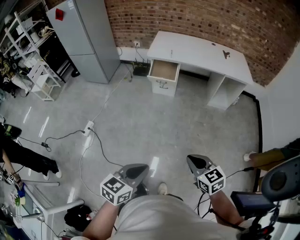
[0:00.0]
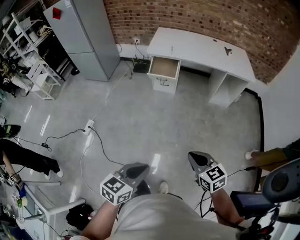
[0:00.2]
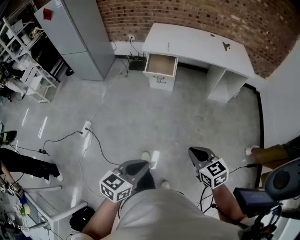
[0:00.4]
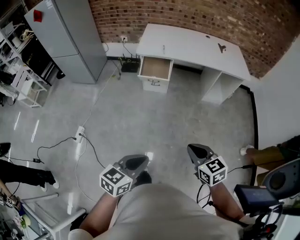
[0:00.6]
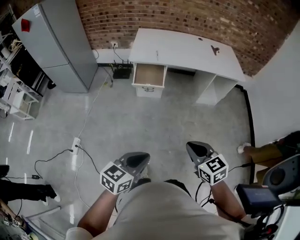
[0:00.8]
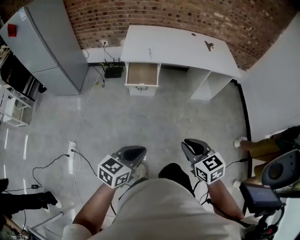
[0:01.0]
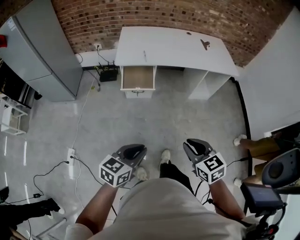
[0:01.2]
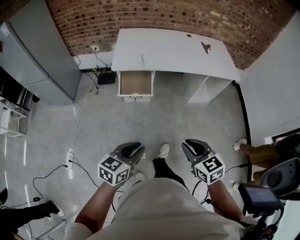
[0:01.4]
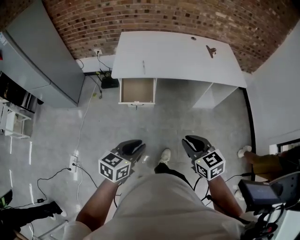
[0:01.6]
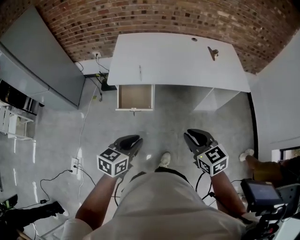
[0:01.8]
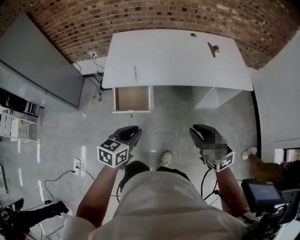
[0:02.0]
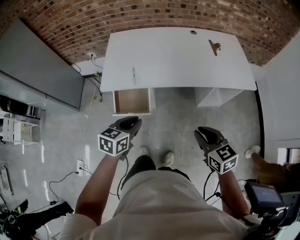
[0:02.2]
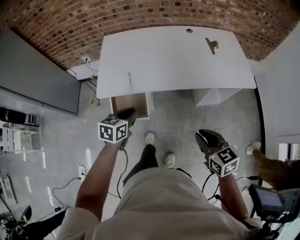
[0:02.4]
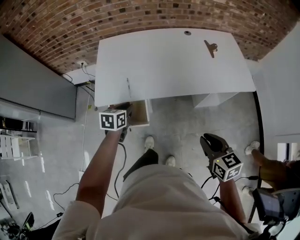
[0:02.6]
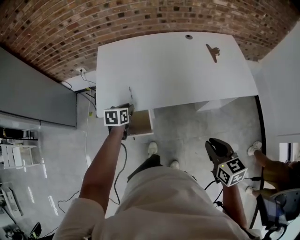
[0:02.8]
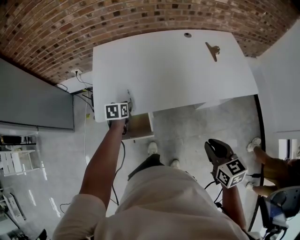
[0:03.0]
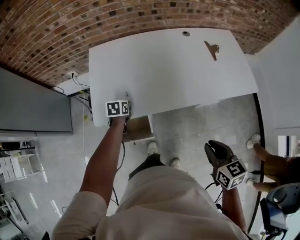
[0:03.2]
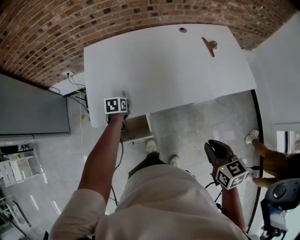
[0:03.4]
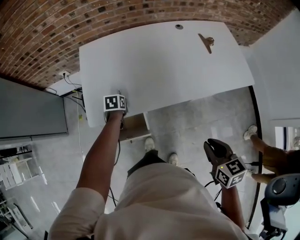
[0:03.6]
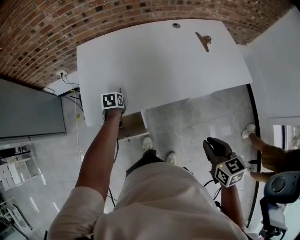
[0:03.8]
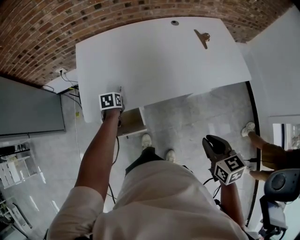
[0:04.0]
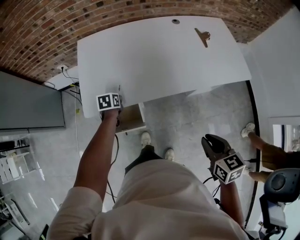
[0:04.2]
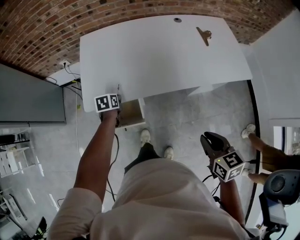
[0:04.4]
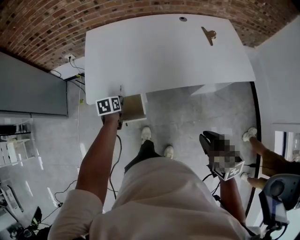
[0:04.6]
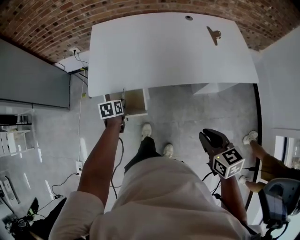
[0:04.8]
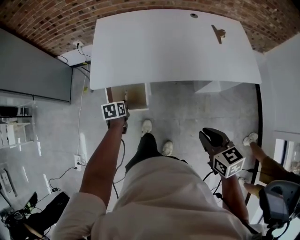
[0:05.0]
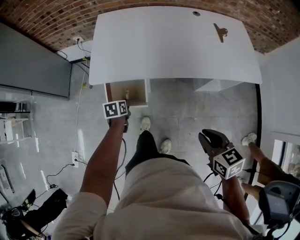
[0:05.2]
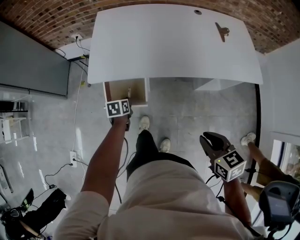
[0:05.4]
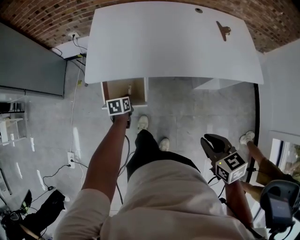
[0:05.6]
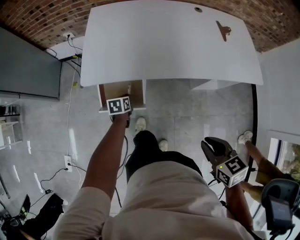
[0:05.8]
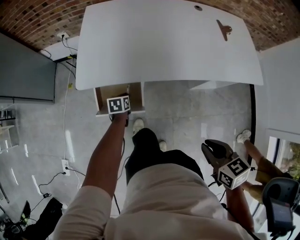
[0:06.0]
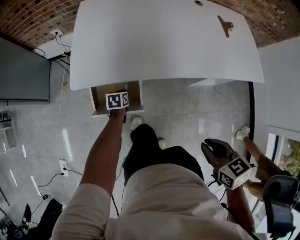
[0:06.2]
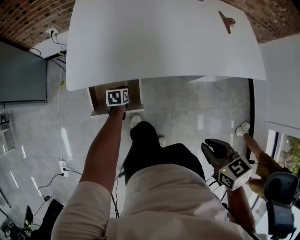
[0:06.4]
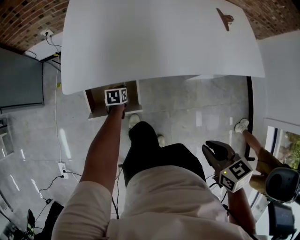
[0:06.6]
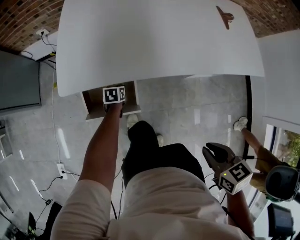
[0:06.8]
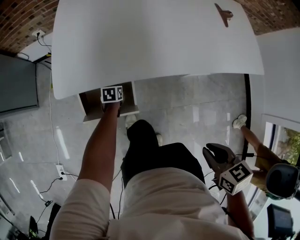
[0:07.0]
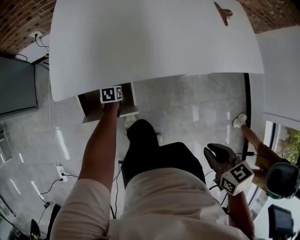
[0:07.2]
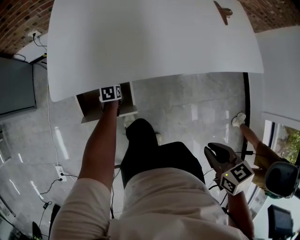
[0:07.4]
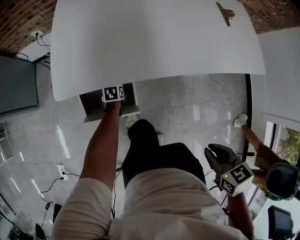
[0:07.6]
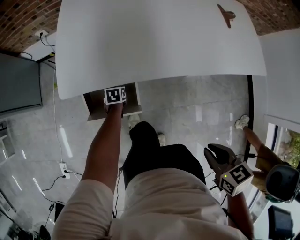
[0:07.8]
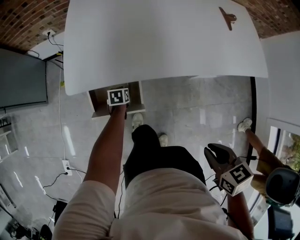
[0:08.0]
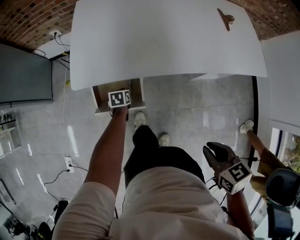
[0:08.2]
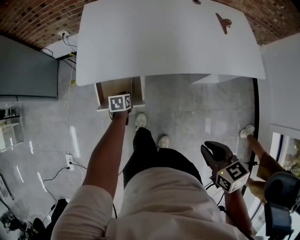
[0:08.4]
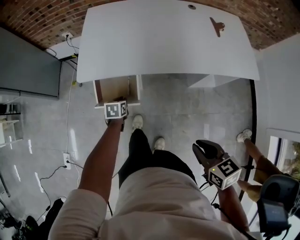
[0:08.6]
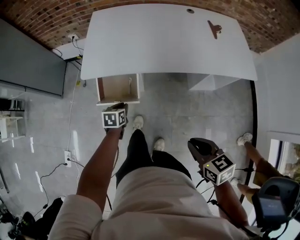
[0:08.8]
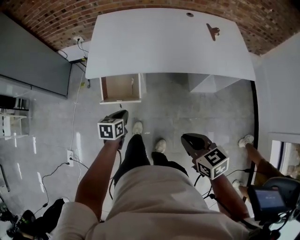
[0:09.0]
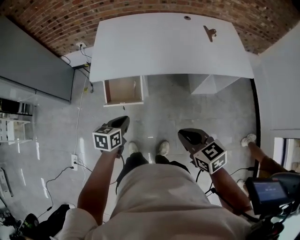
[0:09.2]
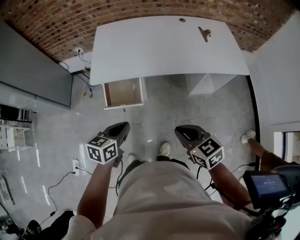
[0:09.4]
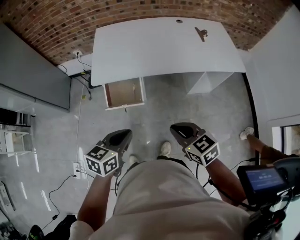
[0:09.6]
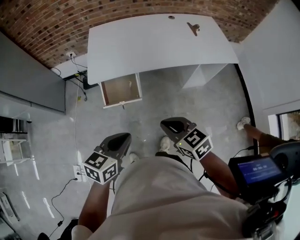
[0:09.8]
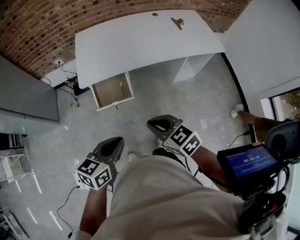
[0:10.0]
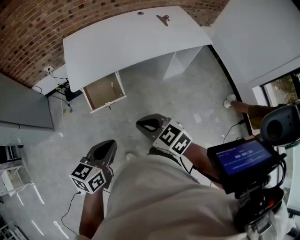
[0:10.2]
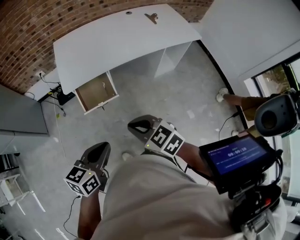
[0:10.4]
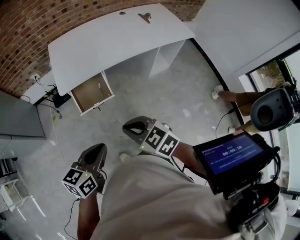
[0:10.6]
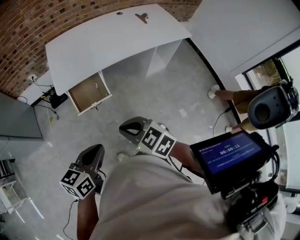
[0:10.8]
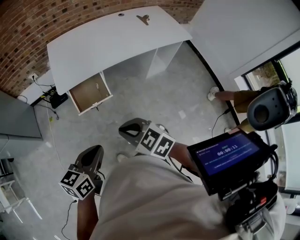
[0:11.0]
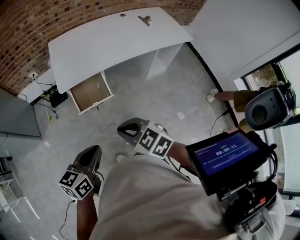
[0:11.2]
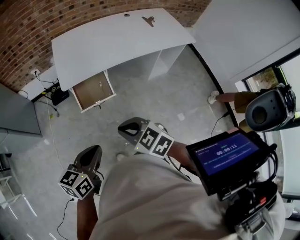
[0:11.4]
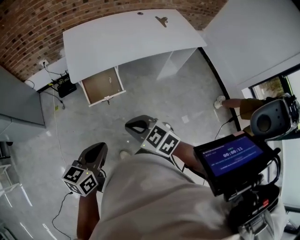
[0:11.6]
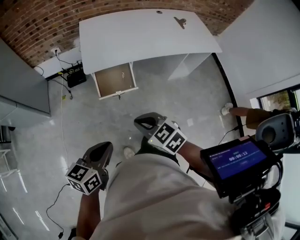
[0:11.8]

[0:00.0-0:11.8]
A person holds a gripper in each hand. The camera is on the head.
0:00.0 to 0:01.4: Both grippers travel together forward, some 40 cm.
0:01.4 to 0:03.0: The pair of grippers is taken forward, some 50 cm. The left gripper changes its angle by roughly 30 degrees. The right gripper turns by about 20 degrees.
0:04.4 to 0:06.0: The left gripper shifts approximately 20 cm downward and backward; the right gripper is displaced downward by about 5 cm.
0:06.0 to 0:07.4: The right gripper goes approximately 5 cm downward. Meanwhile the left gripper shifts approximately 15 cm downward and forward.
0:07.4 to 0:08.8: The right gripper travels backward and upward by some 10 cm. The left gripper heads upward and backward, covering about 30 cm.
0:08.8 to 0:10.4: The right gripper goes some 25 cm to the left. The left gripper travels upward and backward by about 40 cm, and swivels some 40 degrees.
0:10.4 to 0:11.8: Both grippers move to the left, about 10 cm.

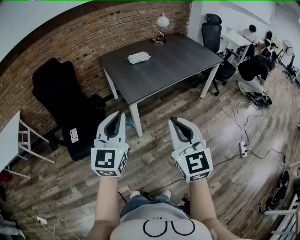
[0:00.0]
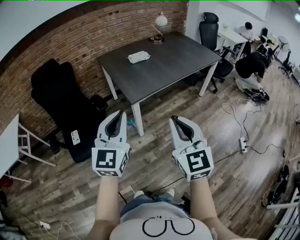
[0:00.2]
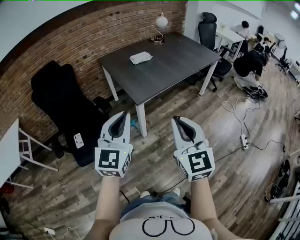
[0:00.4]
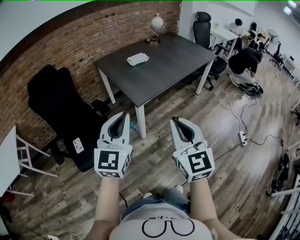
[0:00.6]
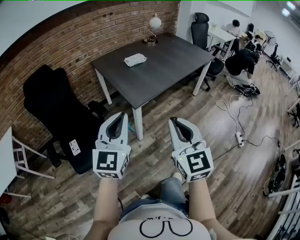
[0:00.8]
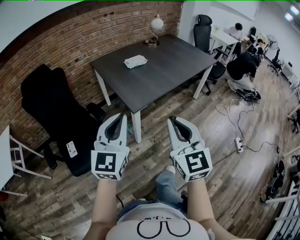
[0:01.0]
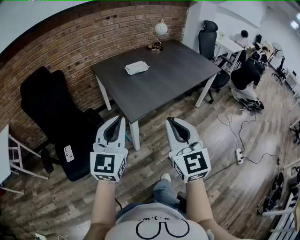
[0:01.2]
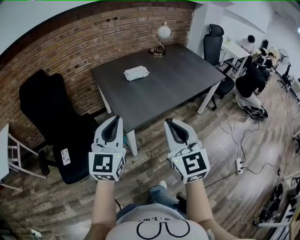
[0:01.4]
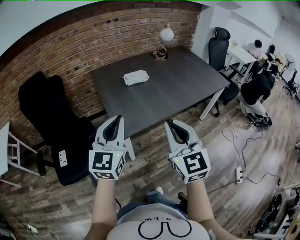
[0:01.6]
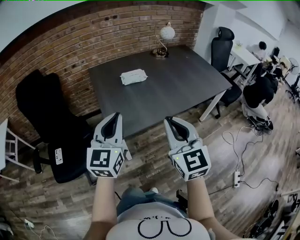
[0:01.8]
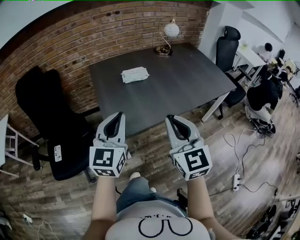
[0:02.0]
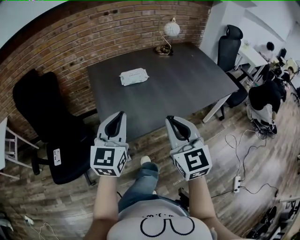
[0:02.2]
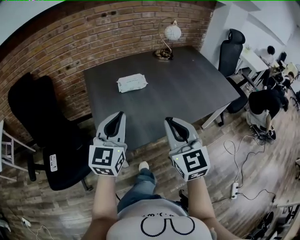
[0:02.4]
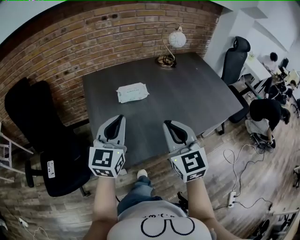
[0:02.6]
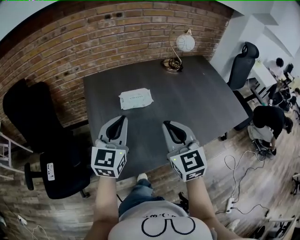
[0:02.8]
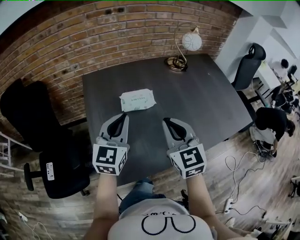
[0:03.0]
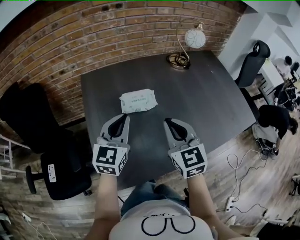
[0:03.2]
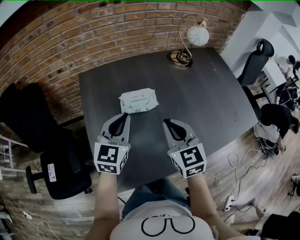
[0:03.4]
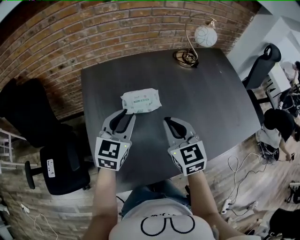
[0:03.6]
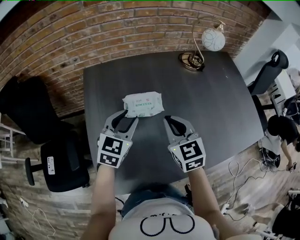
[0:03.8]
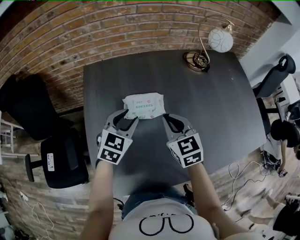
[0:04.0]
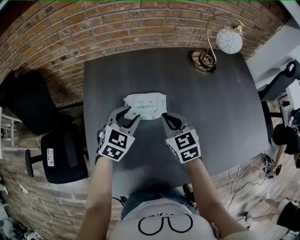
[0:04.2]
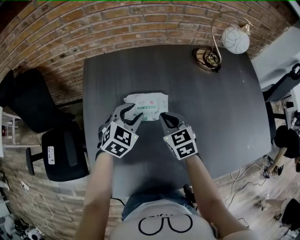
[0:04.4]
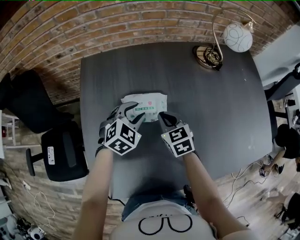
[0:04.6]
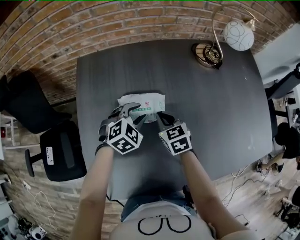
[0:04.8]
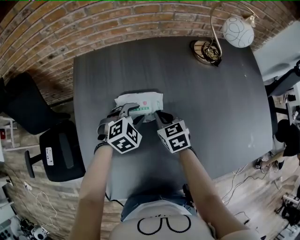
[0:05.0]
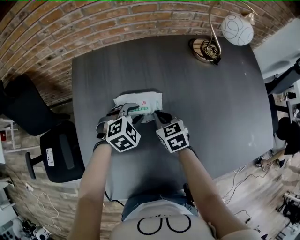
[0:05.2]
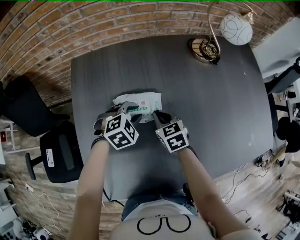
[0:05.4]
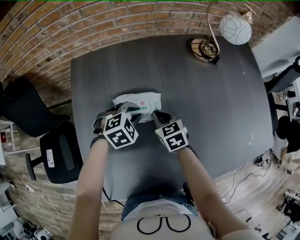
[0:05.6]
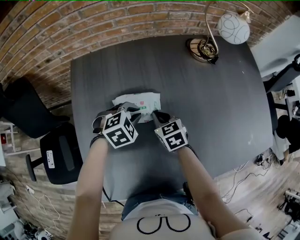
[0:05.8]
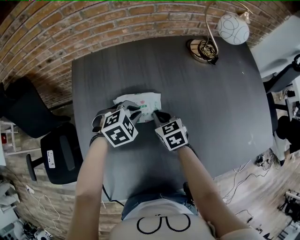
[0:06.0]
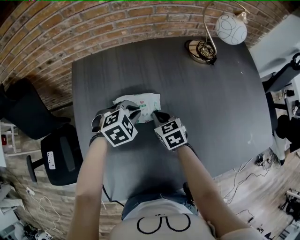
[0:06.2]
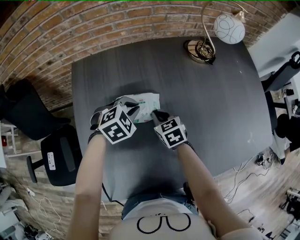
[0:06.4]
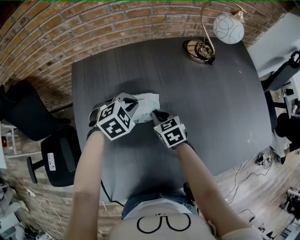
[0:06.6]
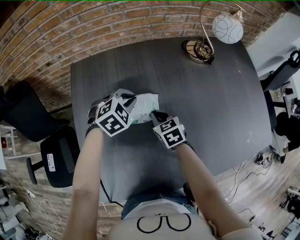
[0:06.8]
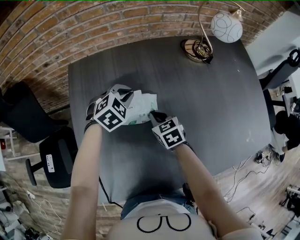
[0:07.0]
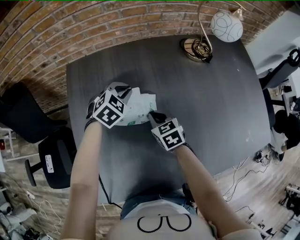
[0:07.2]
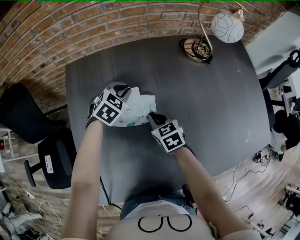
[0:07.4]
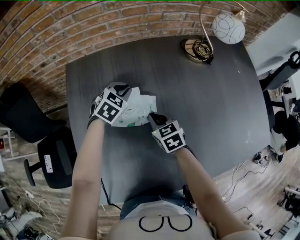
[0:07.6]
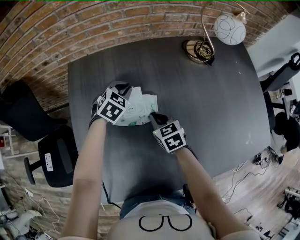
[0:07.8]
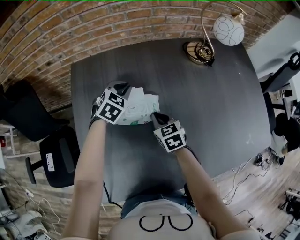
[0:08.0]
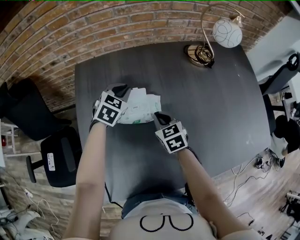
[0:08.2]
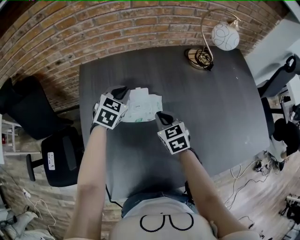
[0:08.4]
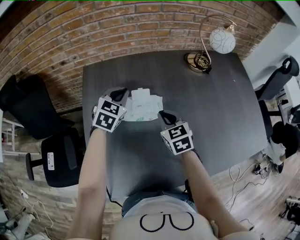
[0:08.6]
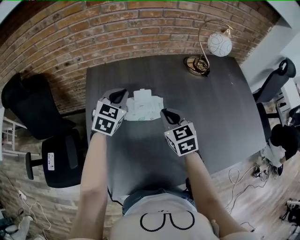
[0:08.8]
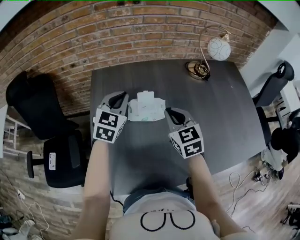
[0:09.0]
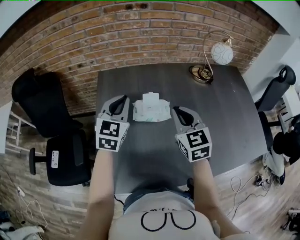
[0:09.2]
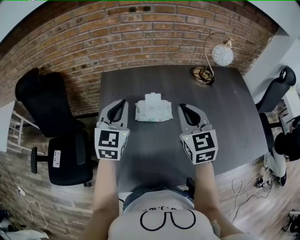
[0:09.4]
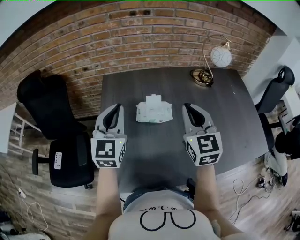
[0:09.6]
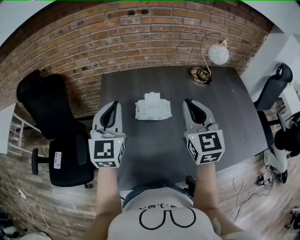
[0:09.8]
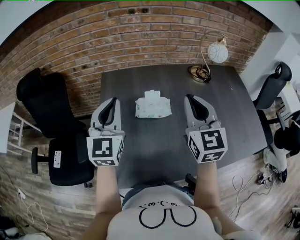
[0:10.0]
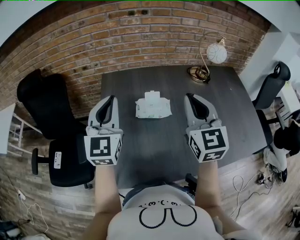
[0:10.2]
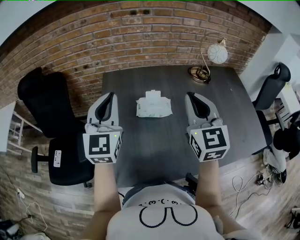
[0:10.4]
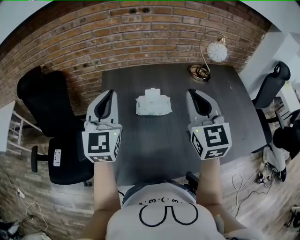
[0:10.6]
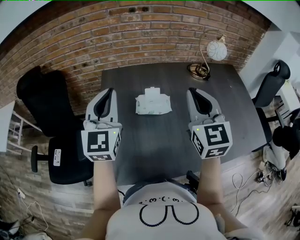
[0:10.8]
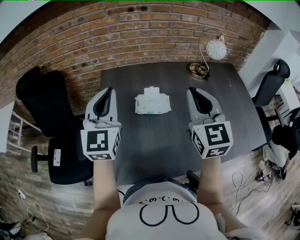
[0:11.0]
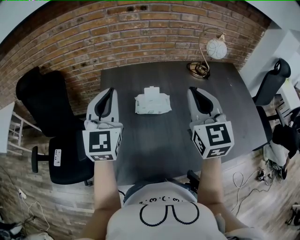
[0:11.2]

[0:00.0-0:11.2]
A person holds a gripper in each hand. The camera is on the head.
0:00.0 to 0:01.6: The grippers both shift forward by about 25 cm.
0:01.6 to 0:03.2: Both grippers are carried forward, some 40 cm.
0:03.2 to 0:04.8: Both grippers move downward and forward, approximately 30 cm. The right gripper changes its angle by about 30 degrees. Meanwhile the left gripper points its fingers about 40 degrees further downward, and opens.
0:04.8 to 0:06.4: The left gripper closes its fingers.
0:06.4 to 0:08.0: The left gripper moves forward, some 10 cm, and swivels about 30 degrees.
0:08.0 to 0:09.6: The left gripper is displaced upward, backward and to the left by about 35 cm, and tips its fingers upward by some 40 degrees. The right gripper shifts some 30 cm upward, and points its fingers some 30 degrees further upward.
0:09.6 to 0:11.2: The grippers both shift upward by roughly 5 cm.

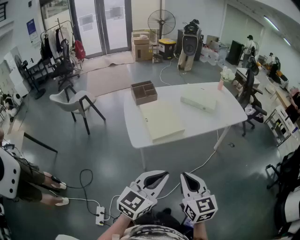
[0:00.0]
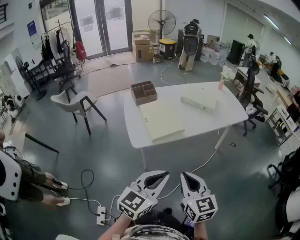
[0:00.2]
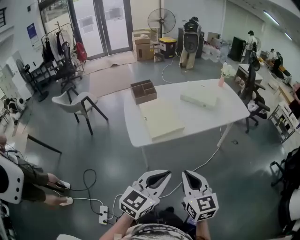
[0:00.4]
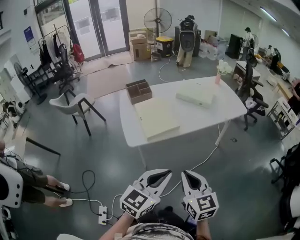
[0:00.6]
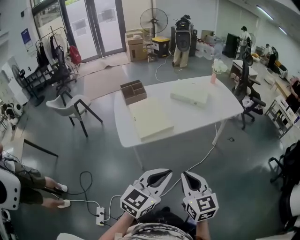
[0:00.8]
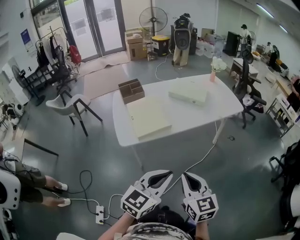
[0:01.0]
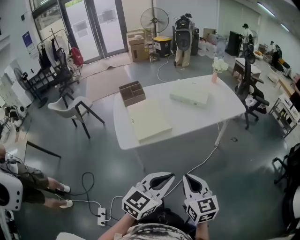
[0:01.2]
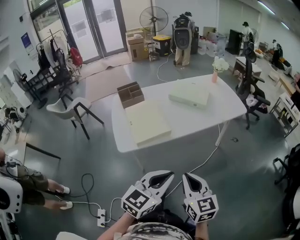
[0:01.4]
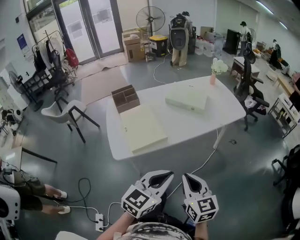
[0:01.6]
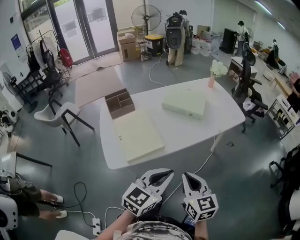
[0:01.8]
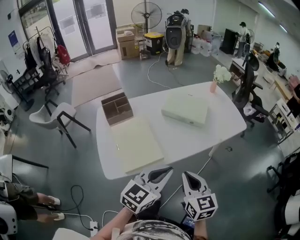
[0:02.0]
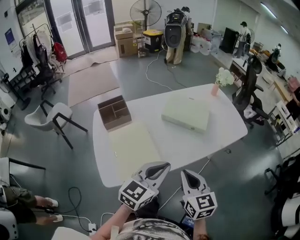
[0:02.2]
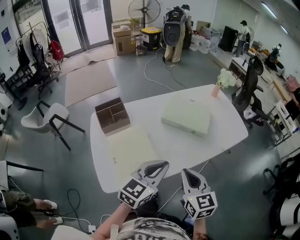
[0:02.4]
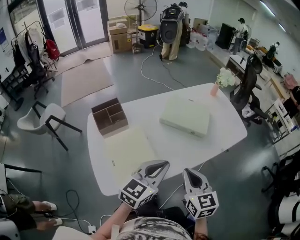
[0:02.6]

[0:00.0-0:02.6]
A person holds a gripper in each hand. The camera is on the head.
0:00.0 to 0:01.2: Both grippers travel together to the right, approximately 15 cm.
0:01.2 to 0:02.6: Both grippers travel together forward, roughly 35 cm.
